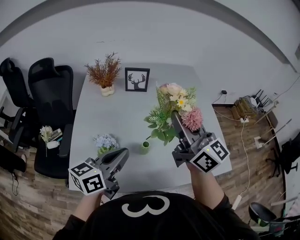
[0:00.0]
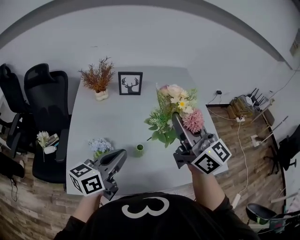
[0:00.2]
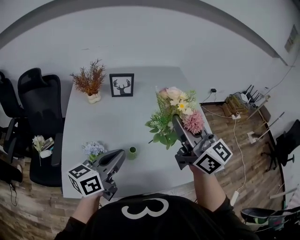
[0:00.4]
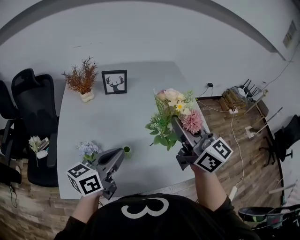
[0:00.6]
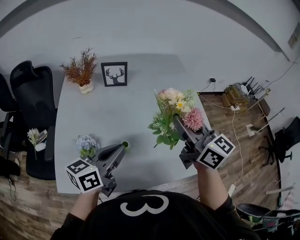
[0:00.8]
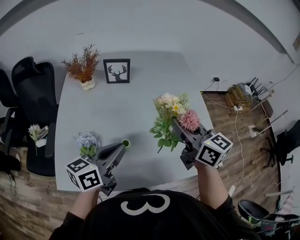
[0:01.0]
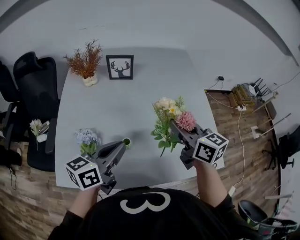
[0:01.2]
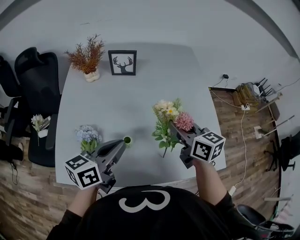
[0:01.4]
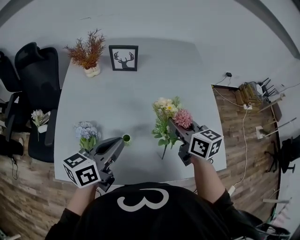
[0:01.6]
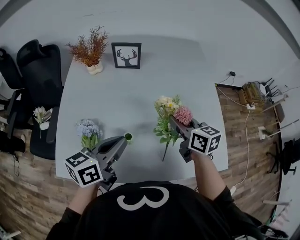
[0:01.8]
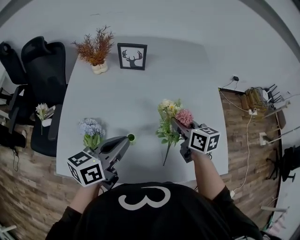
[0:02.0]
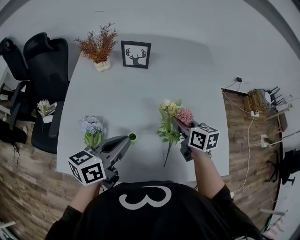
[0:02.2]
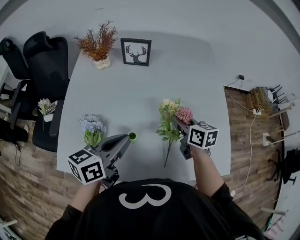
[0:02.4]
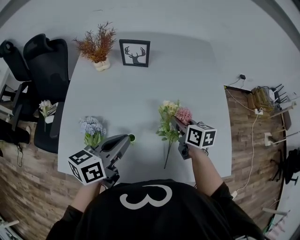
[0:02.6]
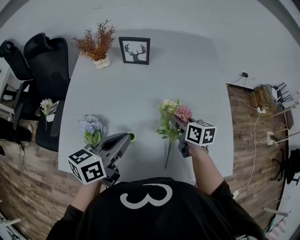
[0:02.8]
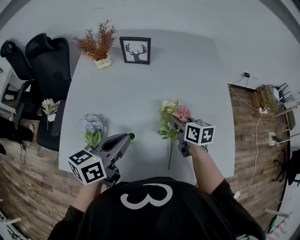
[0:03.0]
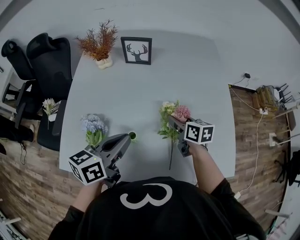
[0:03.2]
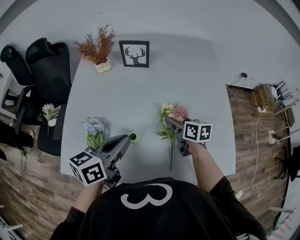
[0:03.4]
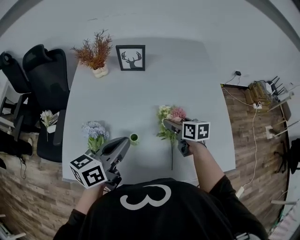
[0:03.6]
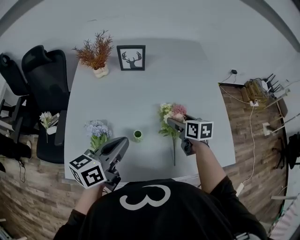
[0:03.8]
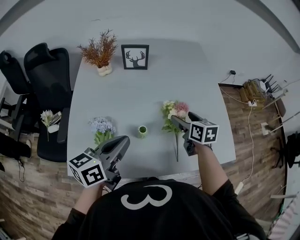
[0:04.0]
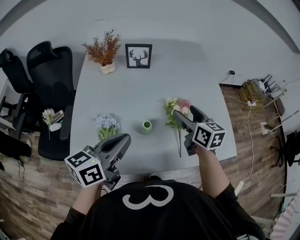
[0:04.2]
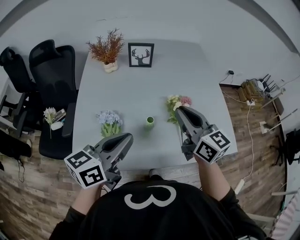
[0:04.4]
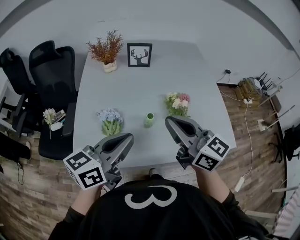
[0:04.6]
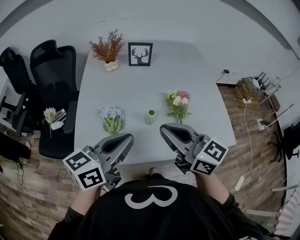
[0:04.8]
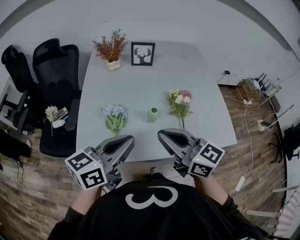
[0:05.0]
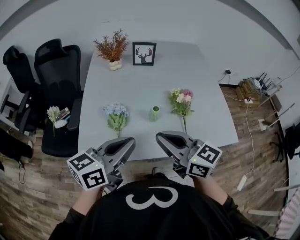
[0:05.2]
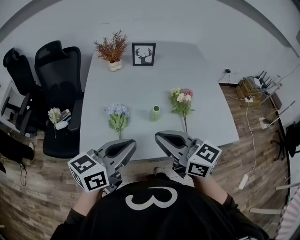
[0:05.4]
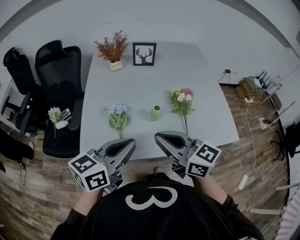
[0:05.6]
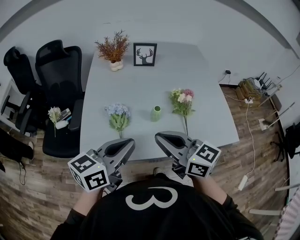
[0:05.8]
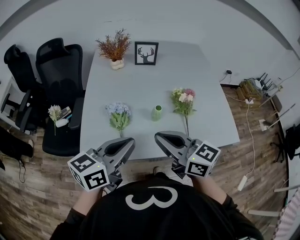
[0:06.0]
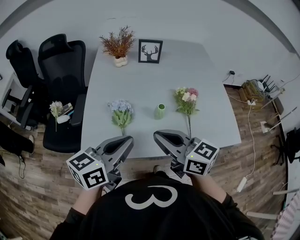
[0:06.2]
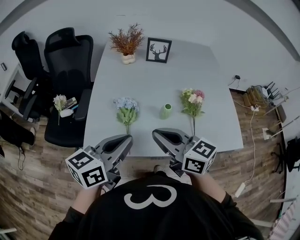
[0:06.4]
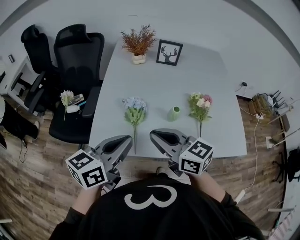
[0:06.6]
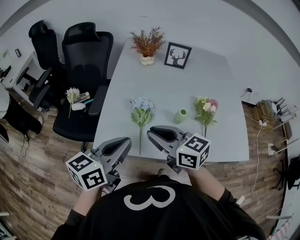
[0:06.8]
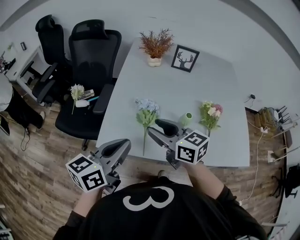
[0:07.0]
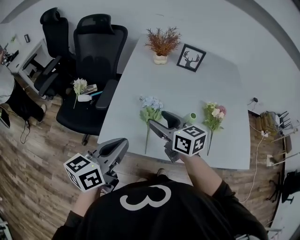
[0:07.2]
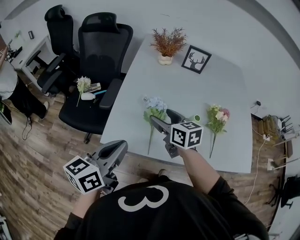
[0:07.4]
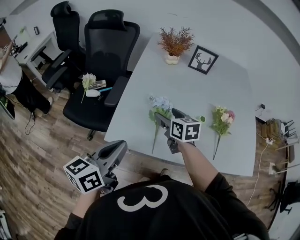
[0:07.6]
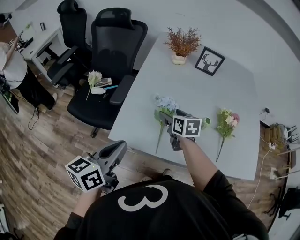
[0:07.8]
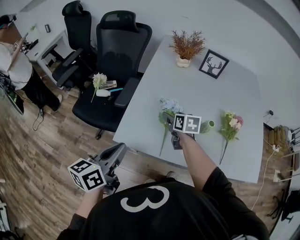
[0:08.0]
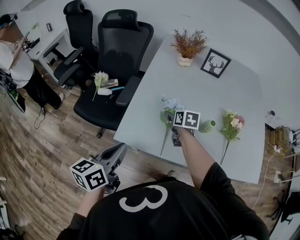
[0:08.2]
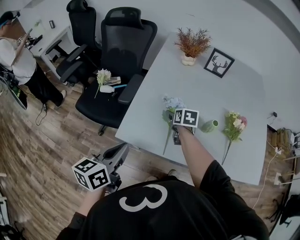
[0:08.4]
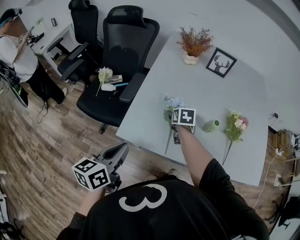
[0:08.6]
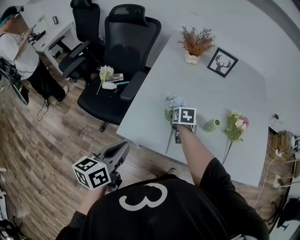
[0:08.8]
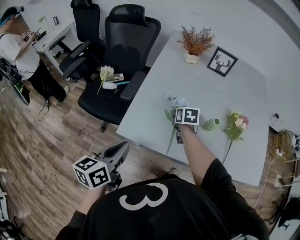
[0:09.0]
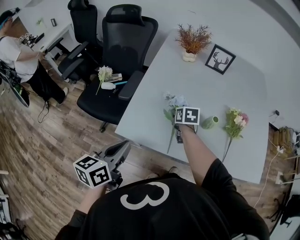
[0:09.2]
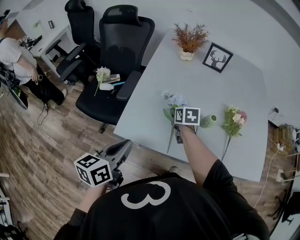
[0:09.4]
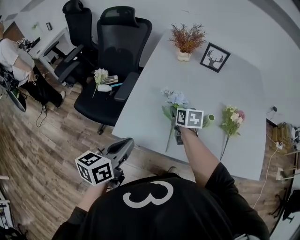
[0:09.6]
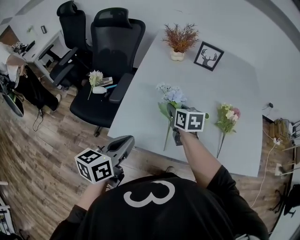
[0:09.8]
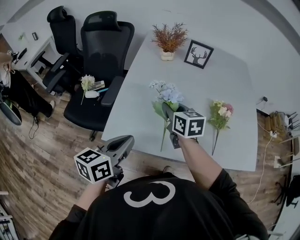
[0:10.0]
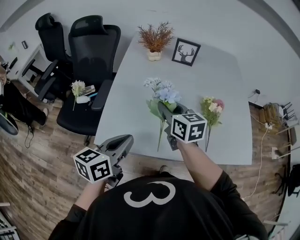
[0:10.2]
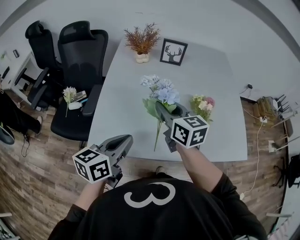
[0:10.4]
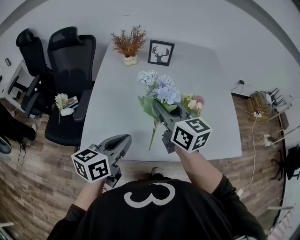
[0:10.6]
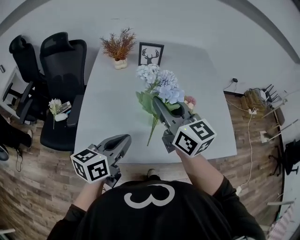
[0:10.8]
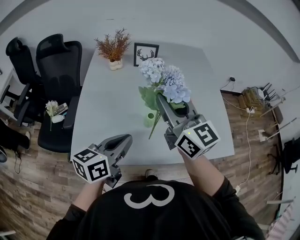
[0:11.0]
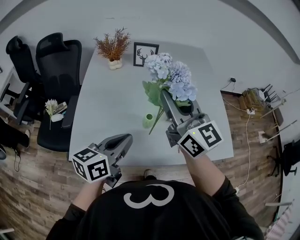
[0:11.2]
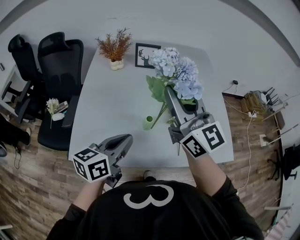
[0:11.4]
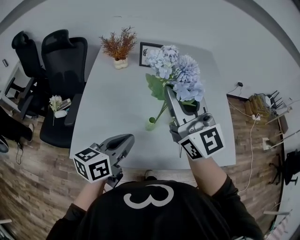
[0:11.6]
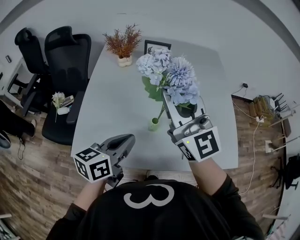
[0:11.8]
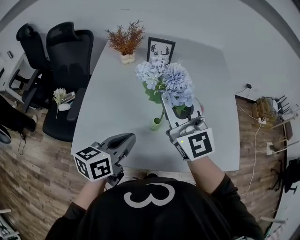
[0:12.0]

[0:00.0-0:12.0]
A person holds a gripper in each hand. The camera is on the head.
0:00.0 to 0:01.6: The right gripper moves downward and to the right, some 20 cm, and tips its fingers downward by about 40 degrees. Meanwhile the left gripper travels to the right by roughly 5 cm.
0:01.6 to 0:03.0: The right gripper shifts about 15 cm downward and forward.
0:03.0 to 0:04.4: The left gripper goes some 15 cm backward, upward and to the left, while the right gripper travels upward and backward by approximately 25 cm, rotates approximately 30 degrees, and opens and closes again.
0:04.4 to 0:06.0: The left gripper goes roughly 10 cm backward. Meanwhile the right gripper goes some 20 cm backward and to the left, and turns by about 20 degrees.
0:06.0 to 0:07.6: The left gripper goes about 15 cm to the left, and rotates approximately 30 degrees. Meanwhile the right gripper travels forward, downward and to the left by some 25 cm, swivels roughly 30 degrees, and opens up.
0:07.6 to 0:09.0: The left gripper ends up roughly 5 cm from where it was, while the right gripper moves downward, approximately 10 cm, swivels some 20 degrees, and closes.
0:09.0 to 0:10.4: The left gripper shifts about 15 cm to the right and forward, and rotates approximately 20 degrees, while the right gripper travels upward by some 20 cm, and points its fingers about 40 degrees further upward.
0:10.4 to 0:12.0: The left gripper travels to the right and forward by some 10 cm. Meanwhile the right gripper shifts some 15 cm upward and to the right, and swivels about 40 degrees.

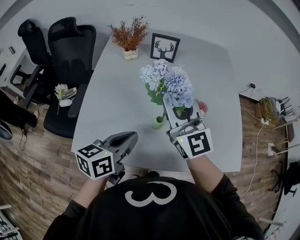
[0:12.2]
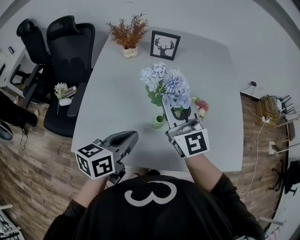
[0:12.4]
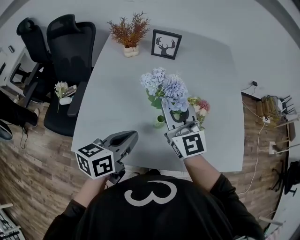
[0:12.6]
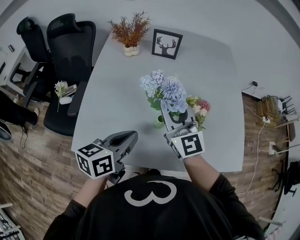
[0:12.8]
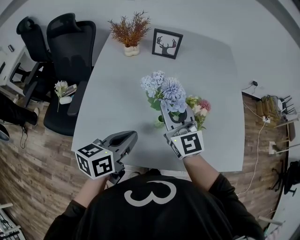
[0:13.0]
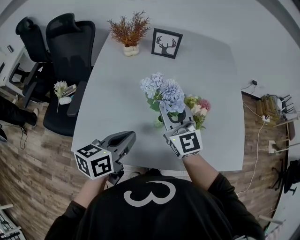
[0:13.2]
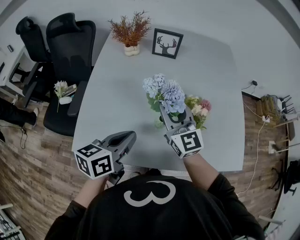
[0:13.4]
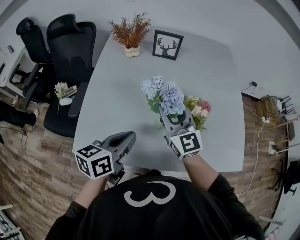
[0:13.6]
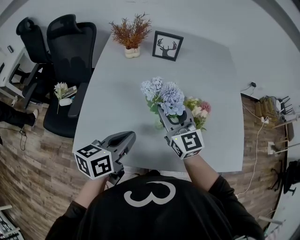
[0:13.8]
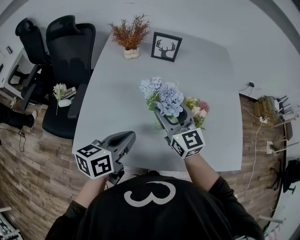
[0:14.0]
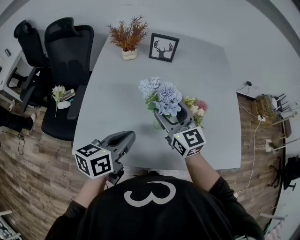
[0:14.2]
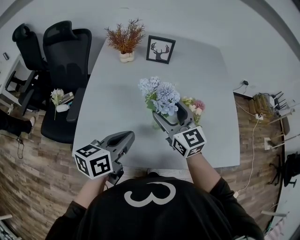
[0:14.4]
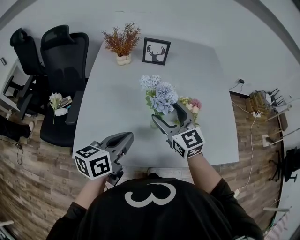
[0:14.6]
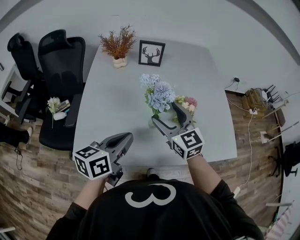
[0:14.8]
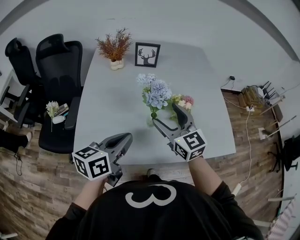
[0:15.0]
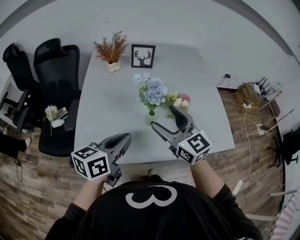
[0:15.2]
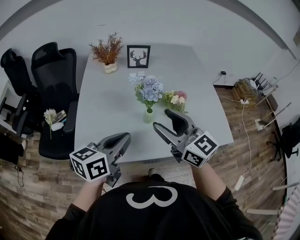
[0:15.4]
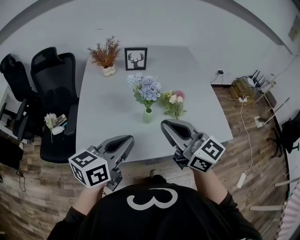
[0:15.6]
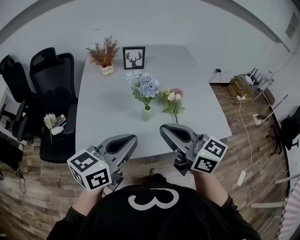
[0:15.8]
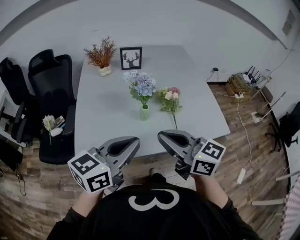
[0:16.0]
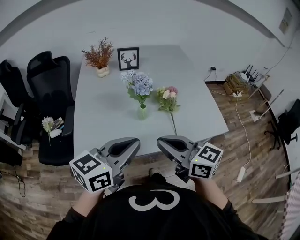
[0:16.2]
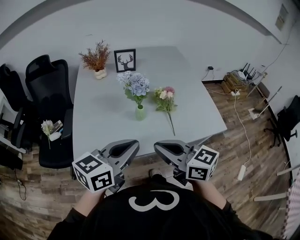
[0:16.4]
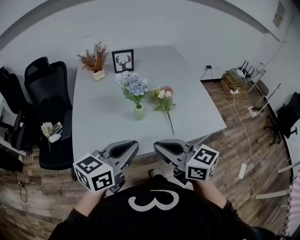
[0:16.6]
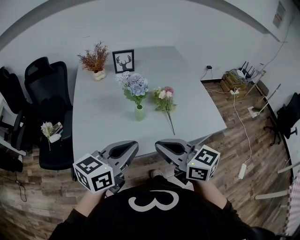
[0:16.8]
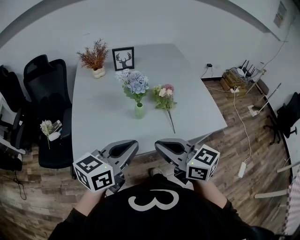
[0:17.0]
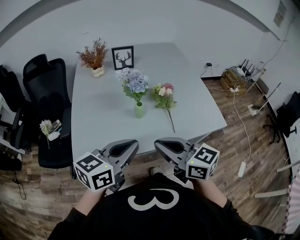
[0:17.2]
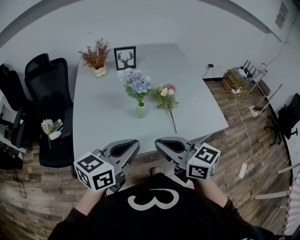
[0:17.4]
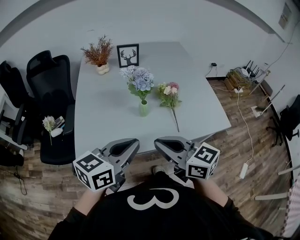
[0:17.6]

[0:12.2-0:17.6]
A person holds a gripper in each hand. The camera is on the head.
0:12.2 to 0:13.6: The right gripper heads downward, covering some 10 cm.
0:13.6 to 0:15.0: The left gripper moves about 5 cm. Meanwhile the right gripper travels backward by about 5 cm, and opens.
0:15.0 to 0:16.2: The left gripper moves backward and upward, approximately 10 cm, and rotates some 20 degrees, while the right gripper heads backward, covering roughly 20 cm, turns by roughly 20 degrees, and closes.
0:16.2 to 0:17.6: The grippers stay close to where they were, moving slightly.

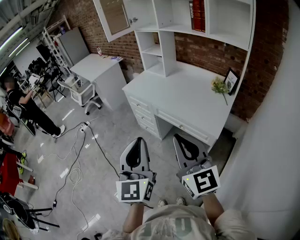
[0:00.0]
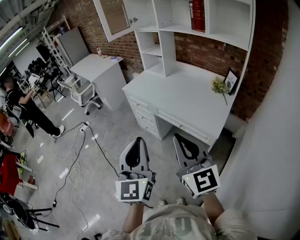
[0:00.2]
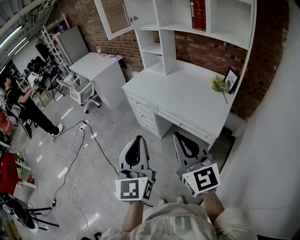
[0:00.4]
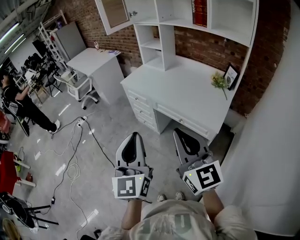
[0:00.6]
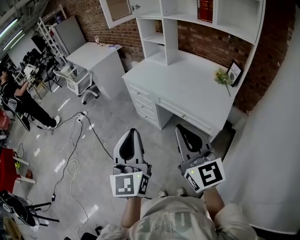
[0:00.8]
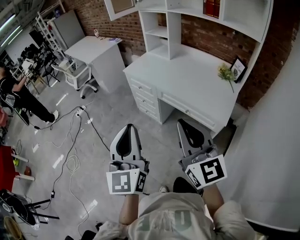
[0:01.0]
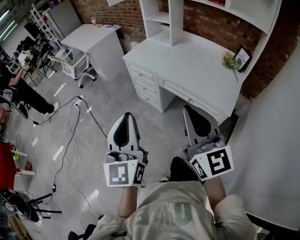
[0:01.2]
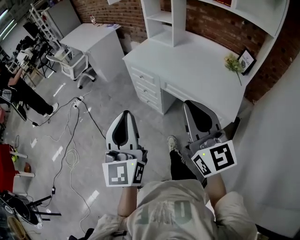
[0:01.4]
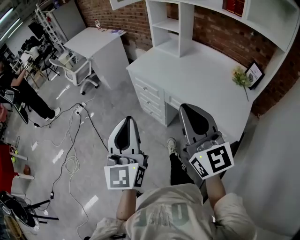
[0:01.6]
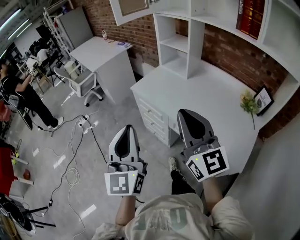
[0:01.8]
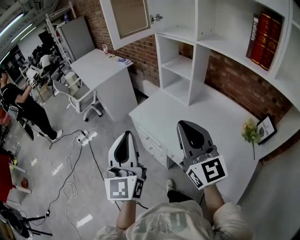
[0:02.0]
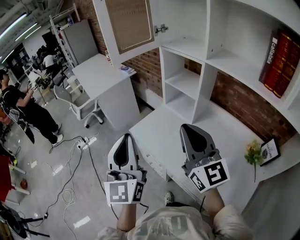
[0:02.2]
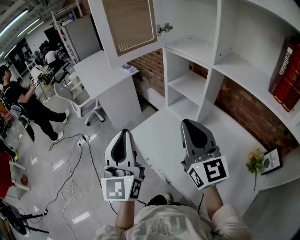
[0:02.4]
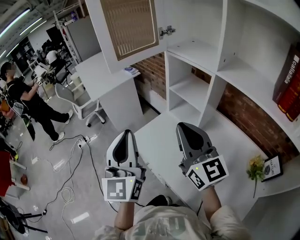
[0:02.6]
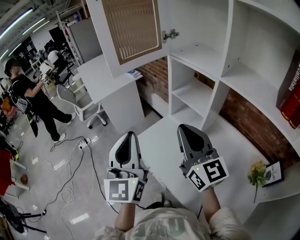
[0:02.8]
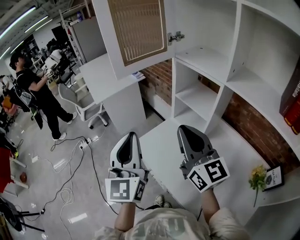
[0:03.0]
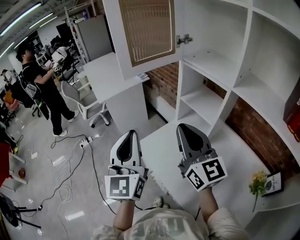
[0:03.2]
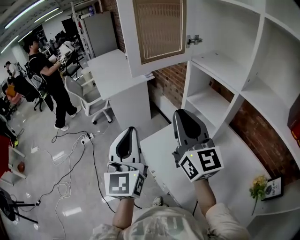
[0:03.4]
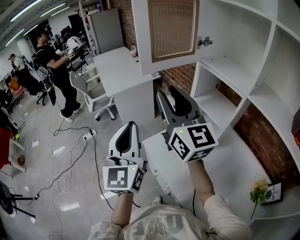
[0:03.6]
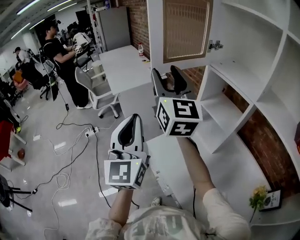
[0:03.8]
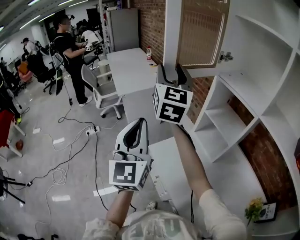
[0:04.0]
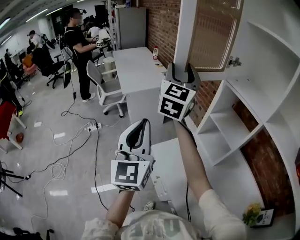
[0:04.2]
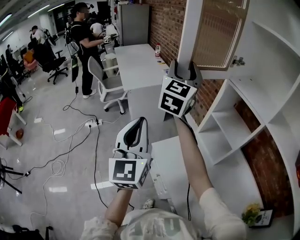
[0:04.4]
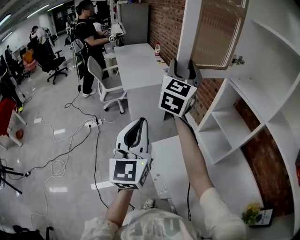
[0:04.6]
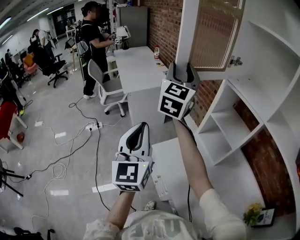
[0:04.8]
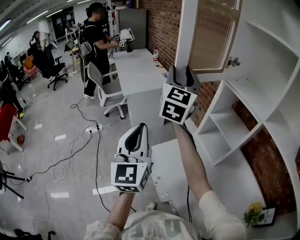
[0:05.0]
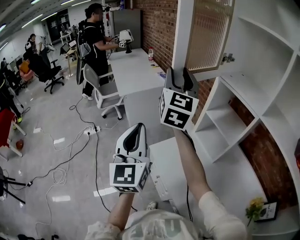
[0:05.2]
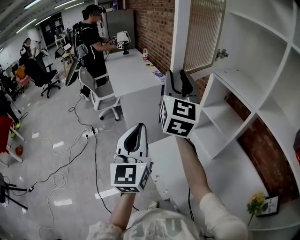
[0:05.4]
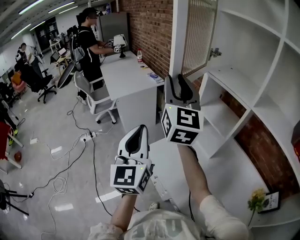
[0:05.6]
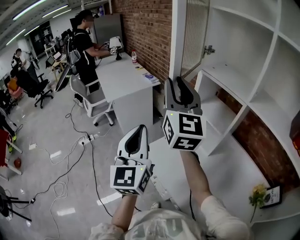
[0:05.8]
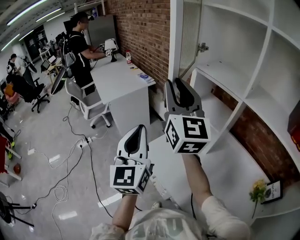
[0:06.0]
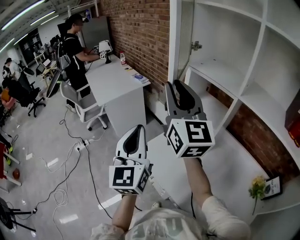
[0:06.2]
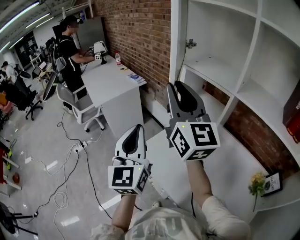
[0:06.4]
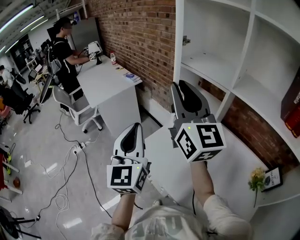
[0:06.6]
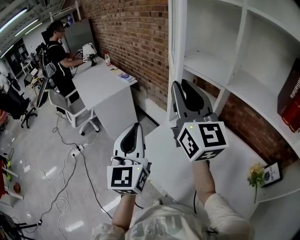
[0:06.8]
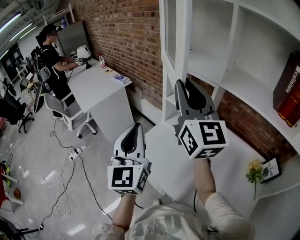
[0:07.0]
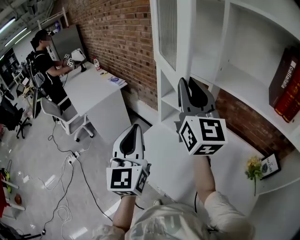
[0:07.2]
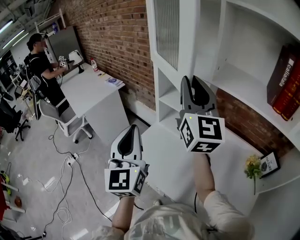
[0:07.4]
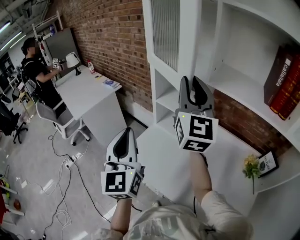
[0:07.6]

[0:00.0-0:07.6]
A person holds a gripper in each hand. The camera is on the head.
0:00.0 to 0:01.6: The left gripper goes roughly 20 cm forward and to the left. The right gripper heads forward, covering roughly 20 cm.
0:01.6 to 0:03.0: The pair of grippers is taken forward, some 50 cm.
0:03.0 to 0:04.6: The left gripper travels to the left and forward by some 15 cm. The right gripper shifts approximately 35 cm forward, to the left and upward, rotates roughly 20 degrees, and opens up.
0:04.6 to 0:06.0: The left gripper travels to the right by roughly 10 cm; the right gripper moves backward and to the right, about 15 cm, and closes up.
0:06.0 to 0:07.6: The right gripper moves to the right, some 20 cm, and swivels about 30 degrees; the left gripper shifts roughly 5 cm to the right.
